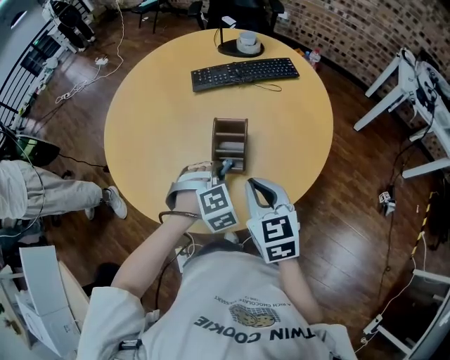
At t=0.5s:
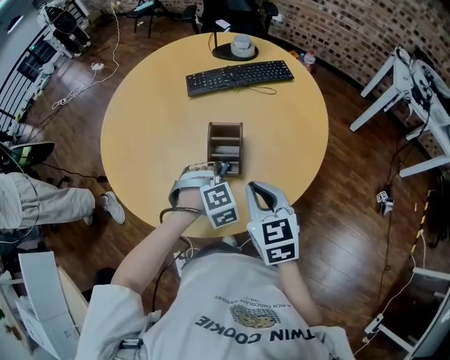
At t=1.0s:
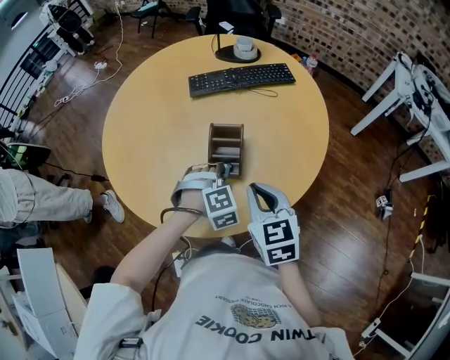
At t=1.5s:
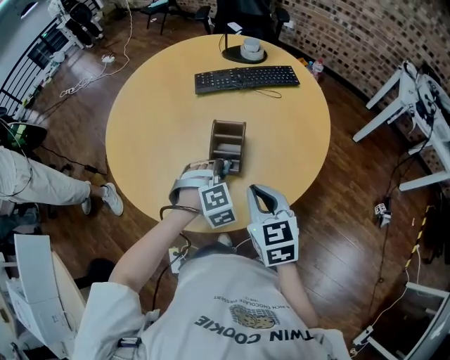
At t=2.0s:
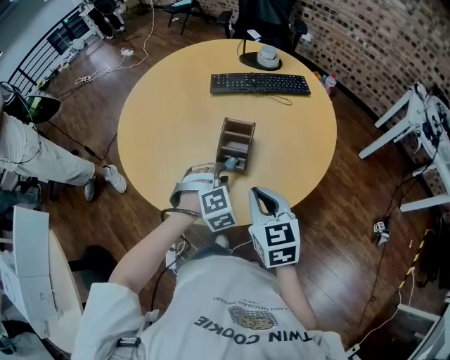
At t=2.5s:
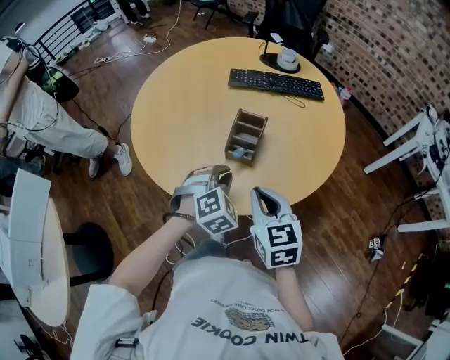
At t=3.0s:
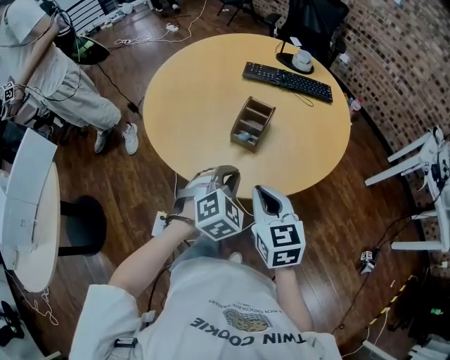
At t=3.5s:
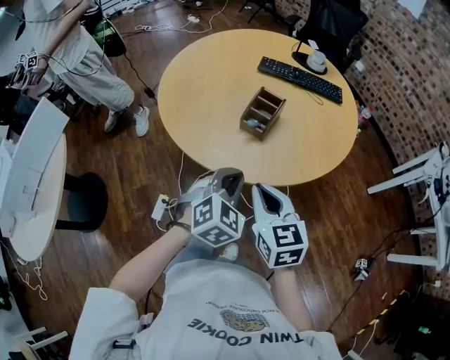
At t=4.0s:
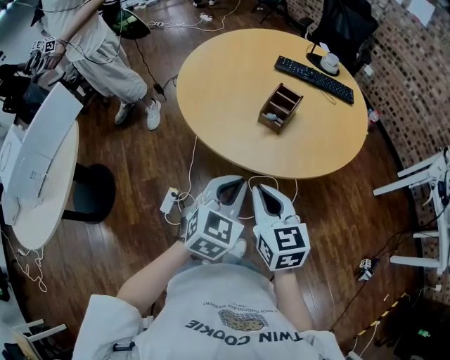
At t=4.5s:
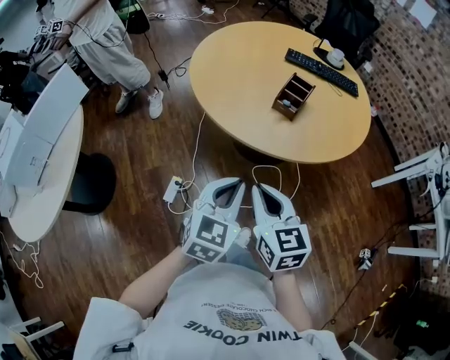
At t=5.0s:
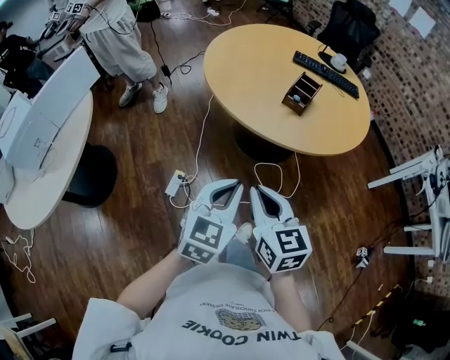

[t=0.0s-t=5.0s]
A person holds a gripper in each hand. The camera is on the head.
t=0.0s to t=2.5s: Both grippers move backward, about 10 cm. The left gripper turns by about 20 degrees.
t=2.5s to t=5.0s: The two grippers go some 40 cm backward and to the left. The left gripper rolls counterclockwise, seen from behind, by approximately 50 degrees.

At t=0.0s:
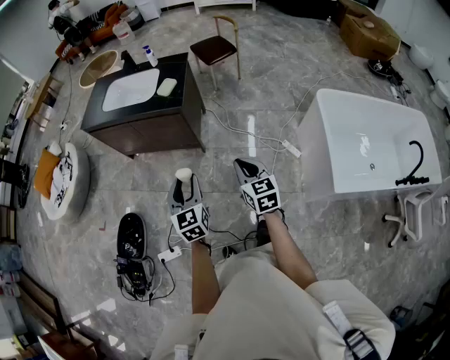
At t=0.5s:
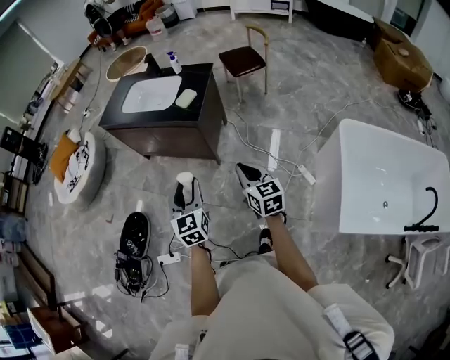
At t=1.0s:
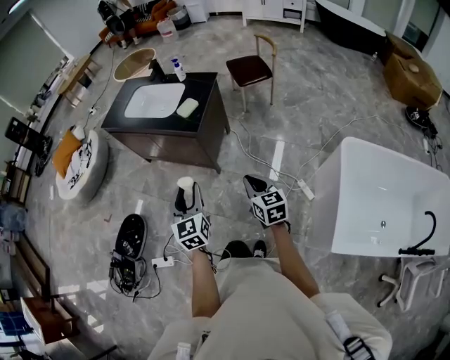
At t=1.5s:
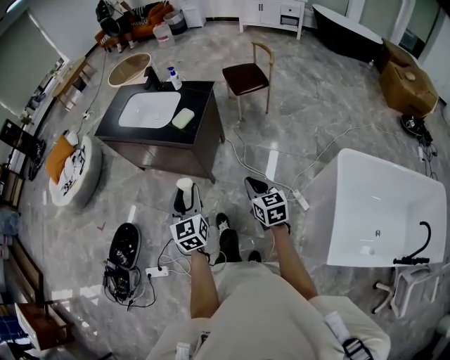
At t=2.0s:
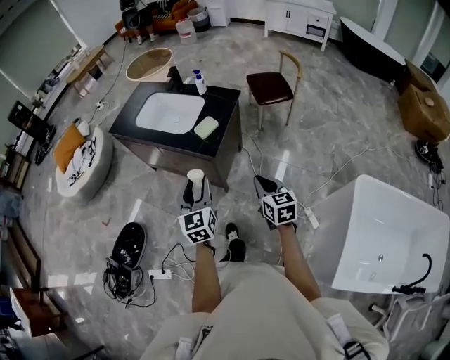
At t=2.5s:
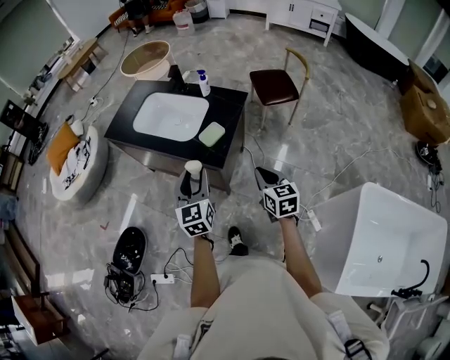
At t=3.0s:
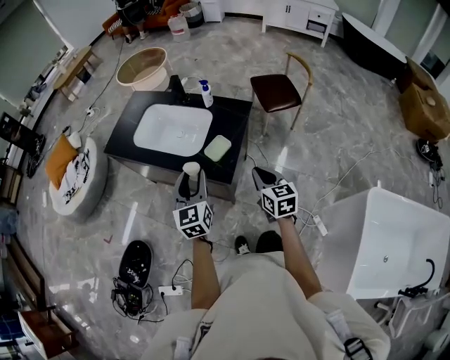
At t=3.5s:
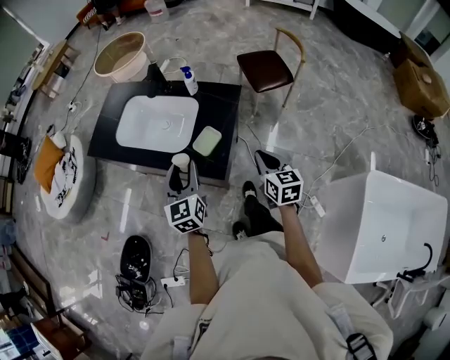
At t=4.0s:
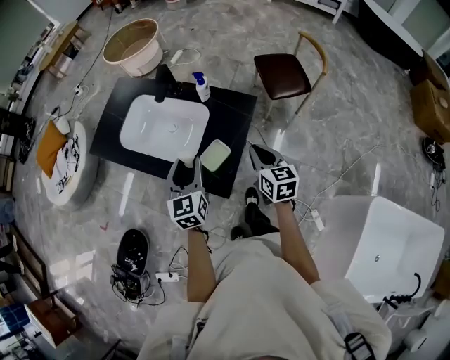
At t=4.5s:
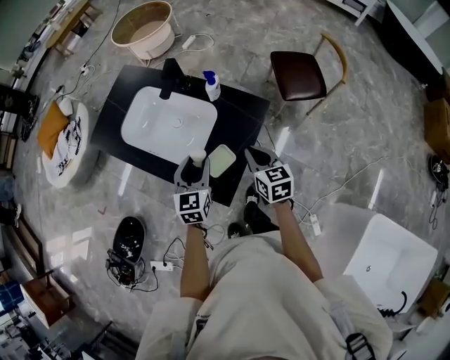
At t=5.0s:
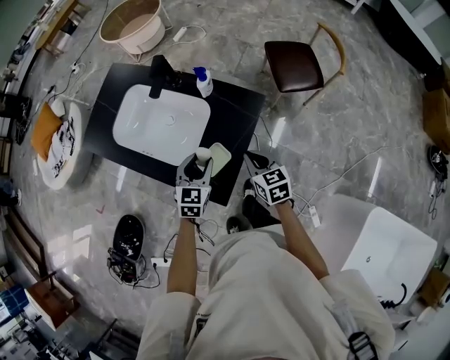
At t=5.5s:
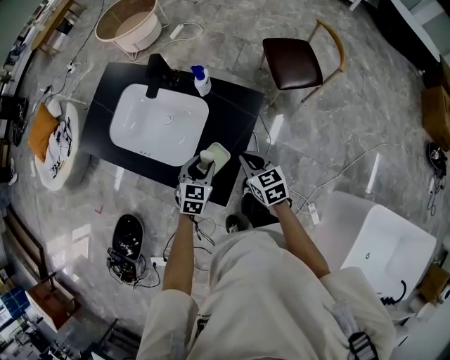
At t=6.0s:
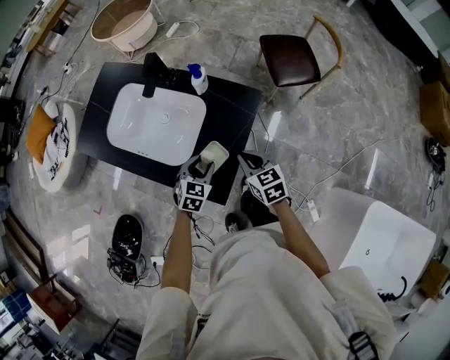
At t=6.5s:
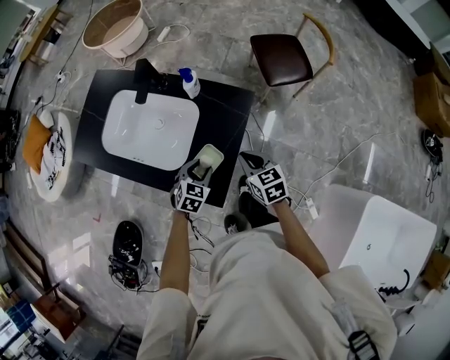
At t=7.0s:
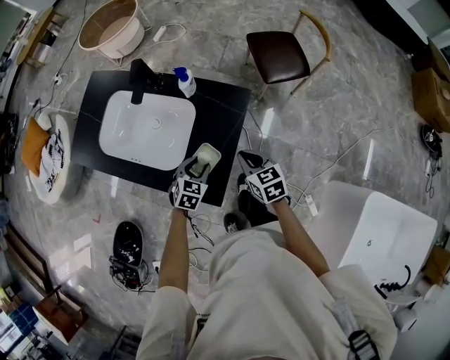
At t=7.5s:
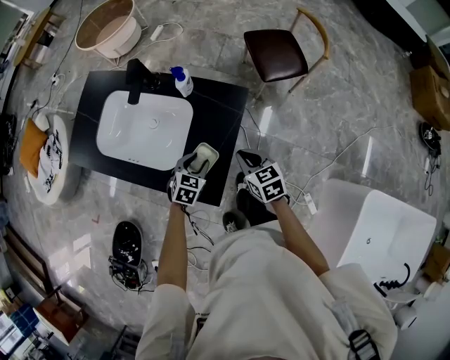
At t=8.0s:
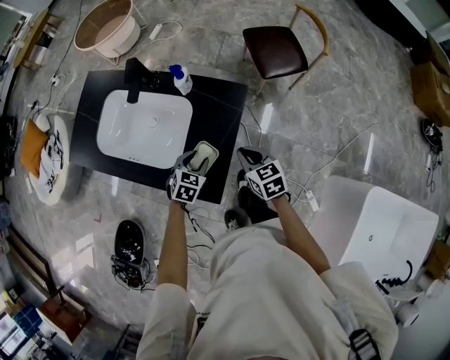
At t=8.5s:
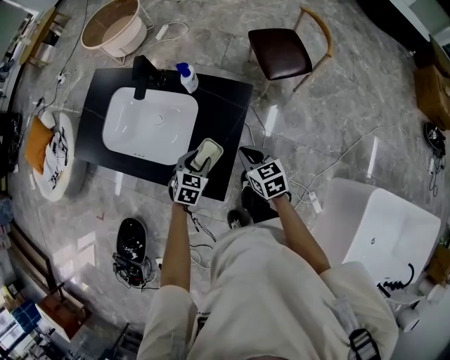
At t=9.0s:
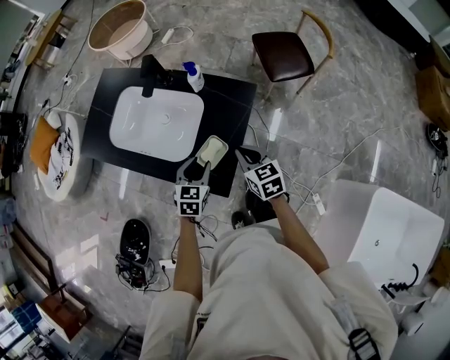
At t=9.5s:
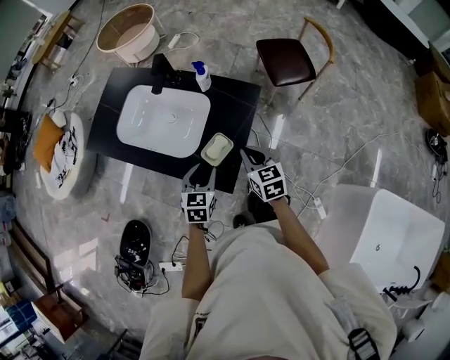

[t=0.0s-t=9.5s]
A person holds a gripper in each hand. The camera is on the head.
t=0.0s to t=2.0s: The left gripper goes some 20 cm forward. The right gripper shifts approximately 25 cm forward and to the right.
t=2.0s to t=4.0s: The grippers both shift forward by some 30 cm.
t=4.0s to t=5.5s: The left gripper is displaced downward by about 15 cm, and swivels approximately 30 degrees. The right gripper travels downward by some 10 cm.
t=5.5s to t=7.5s: The left gripper moves some 5 cm.
t=7.5s to t=9.5s: The left gripper heads upward and backward, covering about 10 cm, and changes its angle by roughly 20 degrees; the right gripper ends up about 5 cm from where it was.

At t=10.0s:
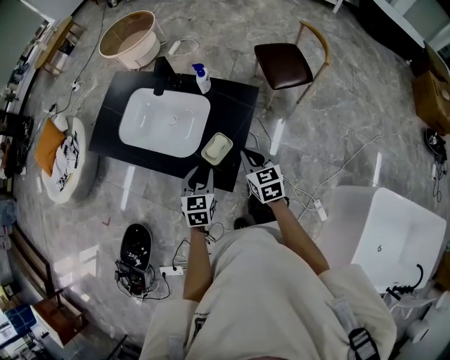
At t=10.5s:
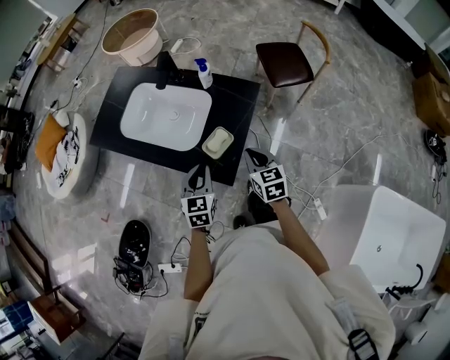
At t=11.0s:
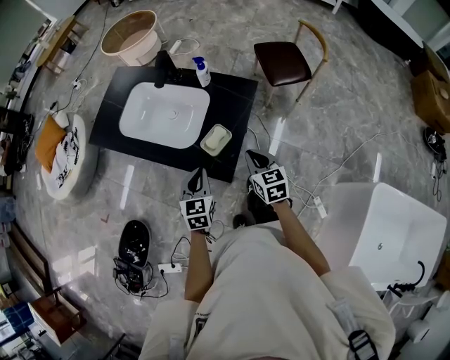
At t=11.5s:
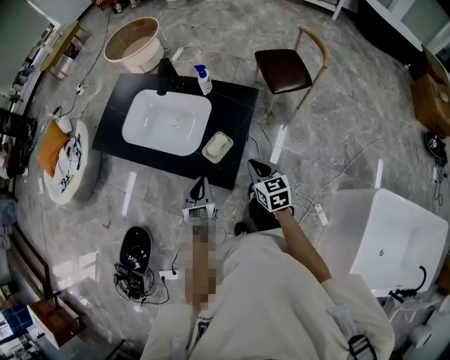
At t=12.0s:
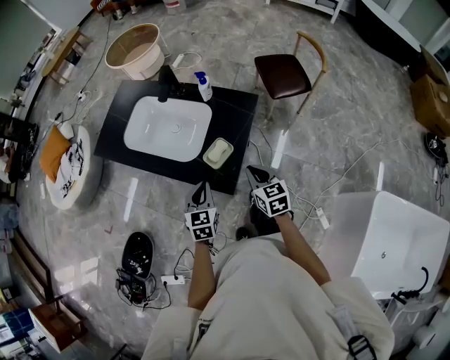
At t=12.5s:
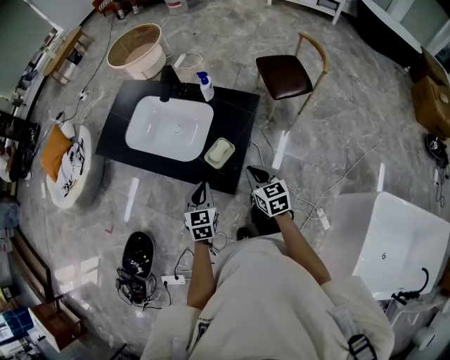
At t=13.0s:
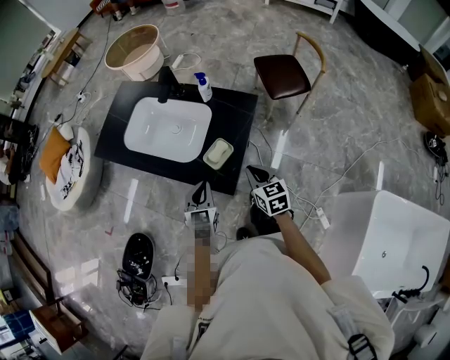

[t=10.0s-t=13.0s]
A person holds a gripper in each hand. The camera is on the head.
t=10.0s to t=11.5s: The left gripper closes its fingers.
t=11.5s to t=13.0s: The grippers move only a little.

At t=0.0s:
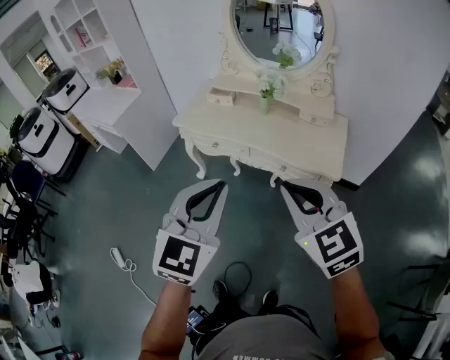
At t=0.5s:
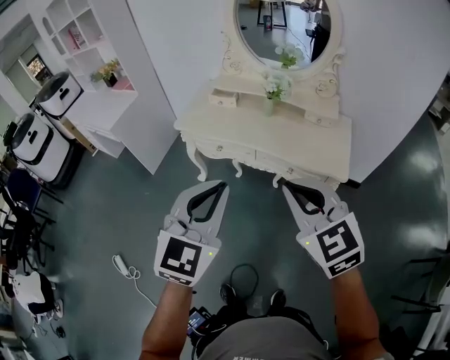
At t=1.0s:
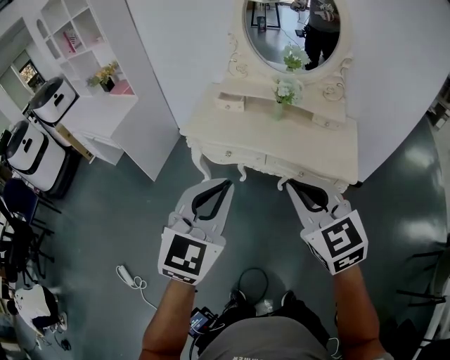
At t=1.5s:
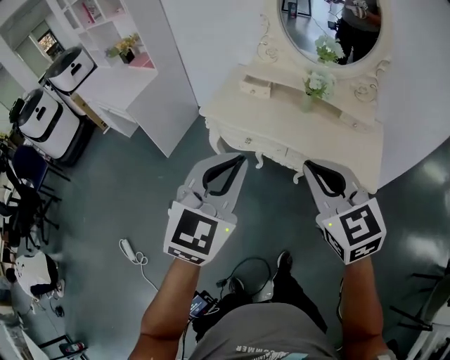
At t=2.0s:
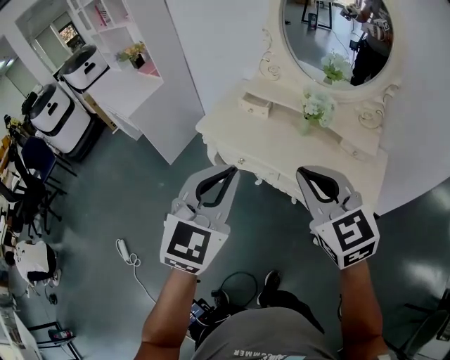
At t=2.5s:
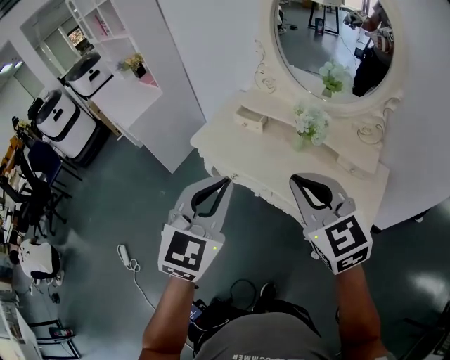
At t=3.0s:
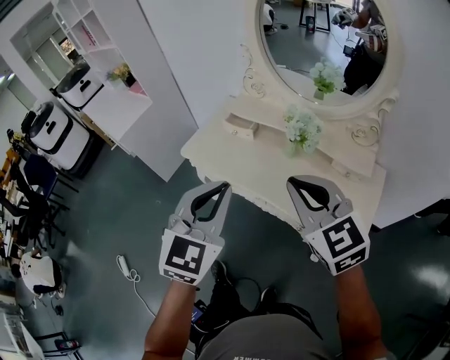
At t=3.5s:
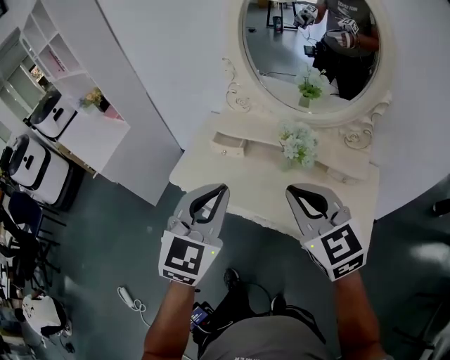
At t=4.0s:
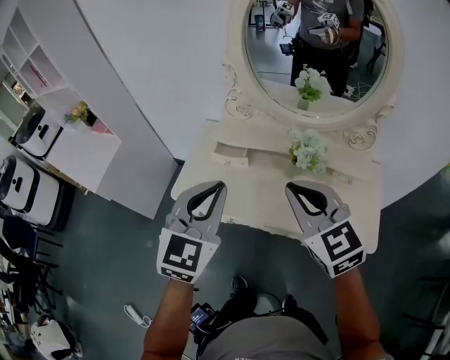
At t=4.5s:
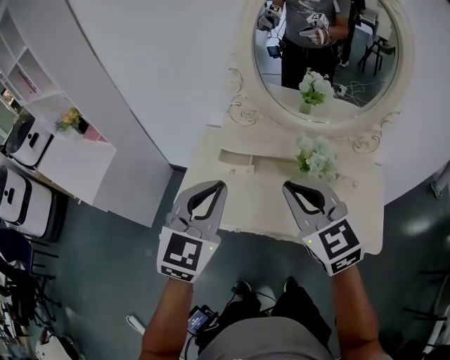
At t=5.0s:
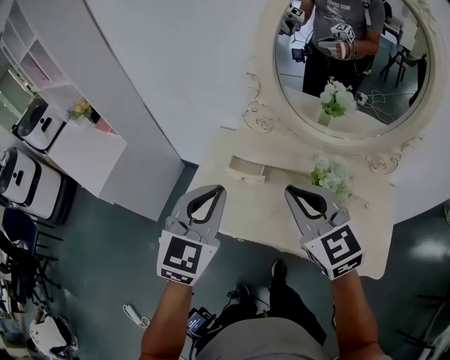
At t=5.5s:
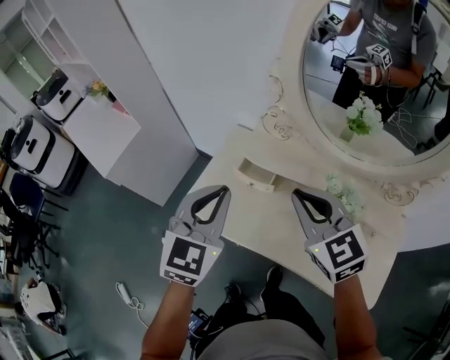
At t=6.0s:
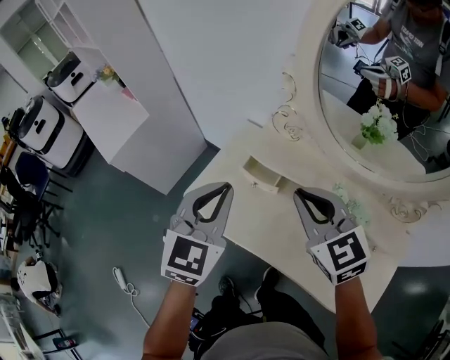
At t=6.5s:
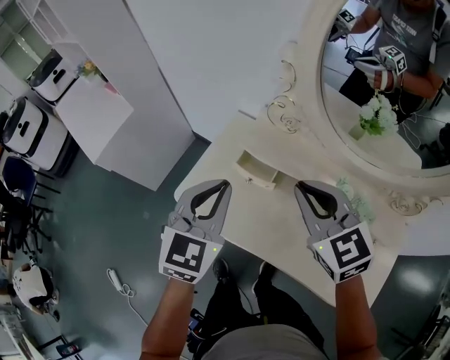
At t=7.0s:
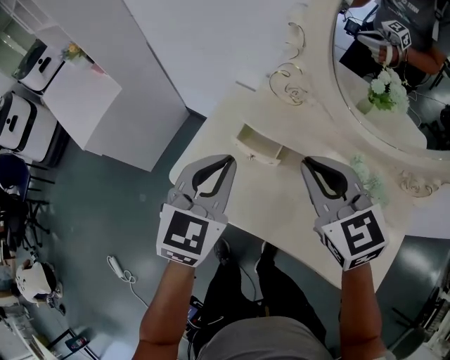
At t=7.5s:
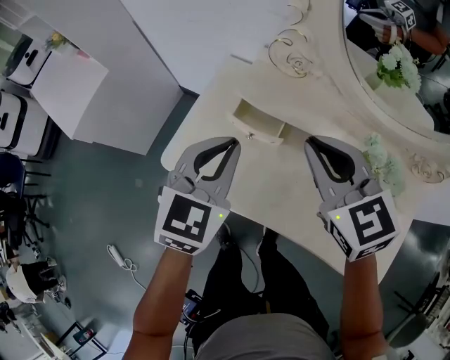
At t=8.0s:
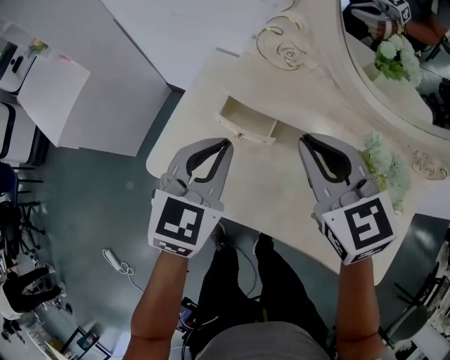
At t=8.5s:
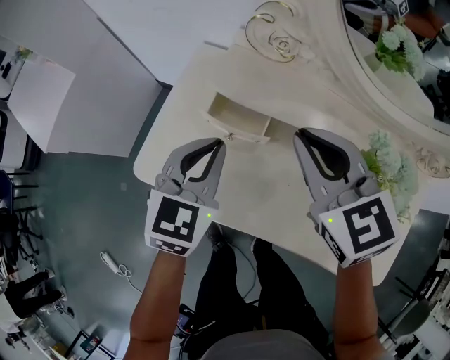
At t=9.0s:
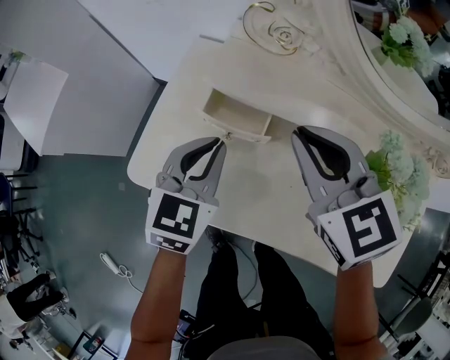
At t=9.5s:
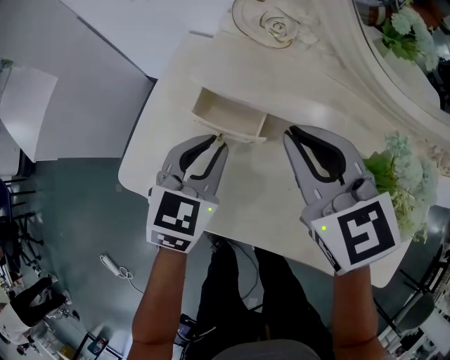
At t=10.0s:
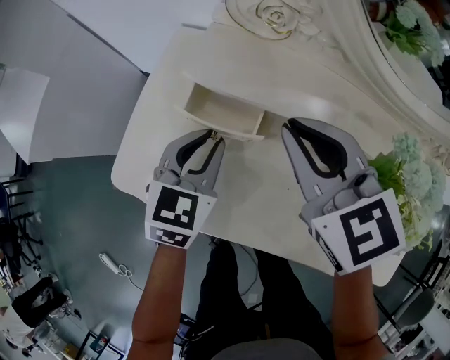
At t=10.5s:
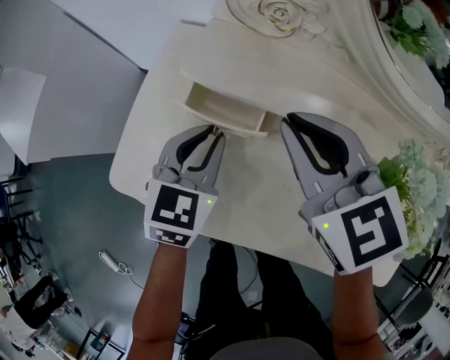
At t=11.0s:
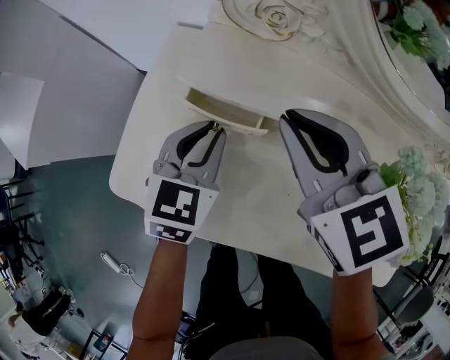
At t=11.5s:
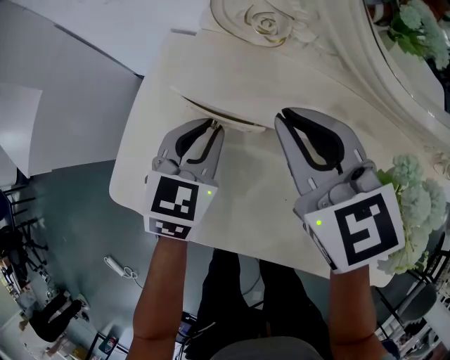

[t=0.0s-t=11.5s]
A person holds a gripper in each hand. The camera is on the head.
t=0.0s to t=2.0s: Both grippers move forward, some 20 cm.
t=2.0s to t=4.0s: Both grippers travel together forward, about 25 cm.
t=4.0s to t=6.0s: Both grippers travel together forward, roughly 15 cm.
t=6.0s to t=7.5s: The left gripper is displaced downward and forward by approximately 15 cm. Meanwhile the right gripper travels downward by roughly 10 cm.
t=7.5s to t=9.5s: The left gripper is displaced downward by about 15 cm; the right gripper goes about 10 cm downward.
t=9.5s to t=11.5s: Both grippers travel together forward, about 5 cm.
